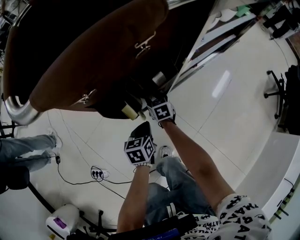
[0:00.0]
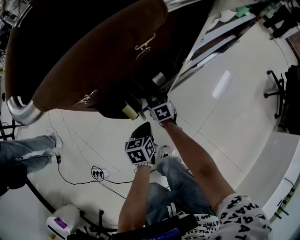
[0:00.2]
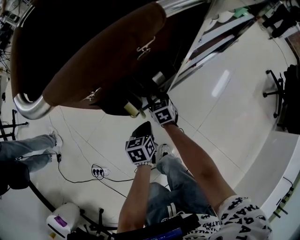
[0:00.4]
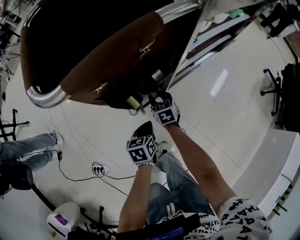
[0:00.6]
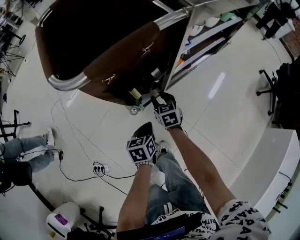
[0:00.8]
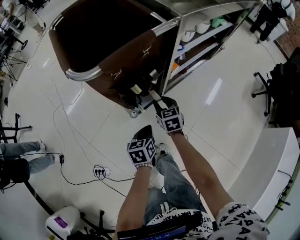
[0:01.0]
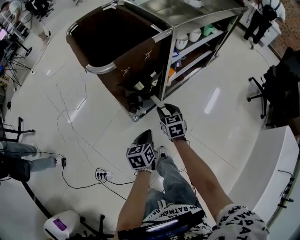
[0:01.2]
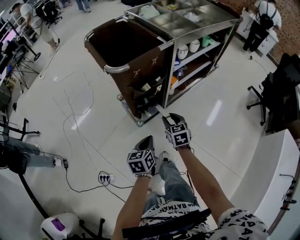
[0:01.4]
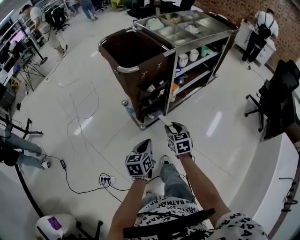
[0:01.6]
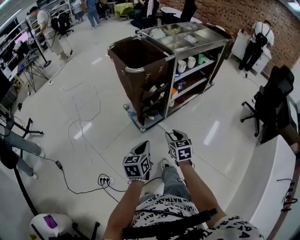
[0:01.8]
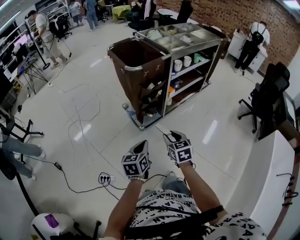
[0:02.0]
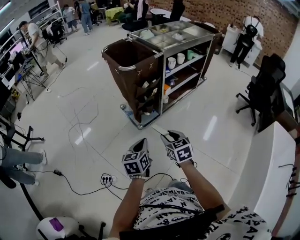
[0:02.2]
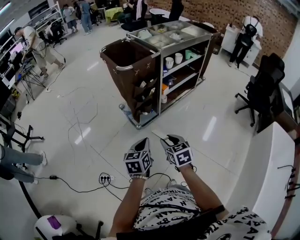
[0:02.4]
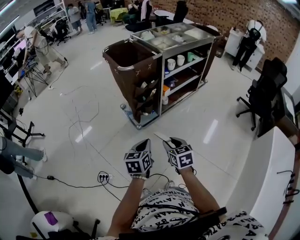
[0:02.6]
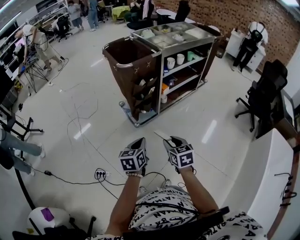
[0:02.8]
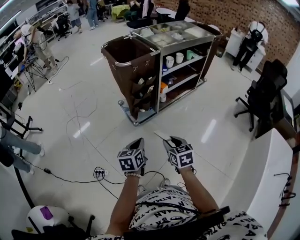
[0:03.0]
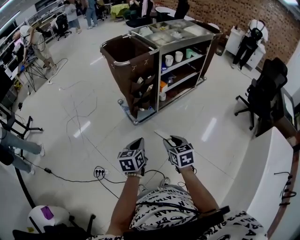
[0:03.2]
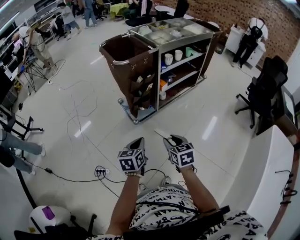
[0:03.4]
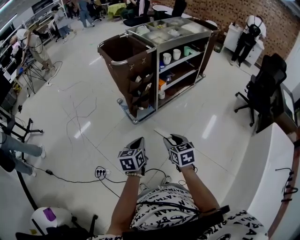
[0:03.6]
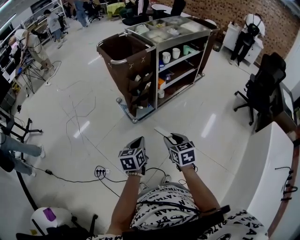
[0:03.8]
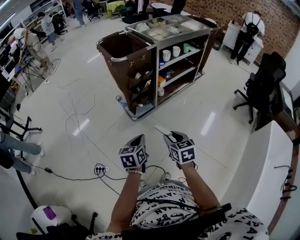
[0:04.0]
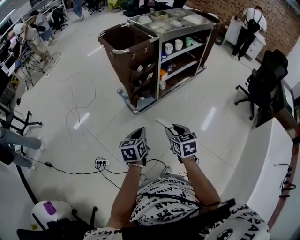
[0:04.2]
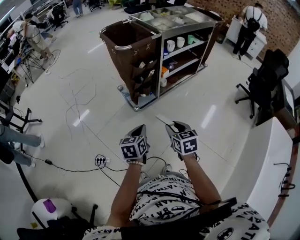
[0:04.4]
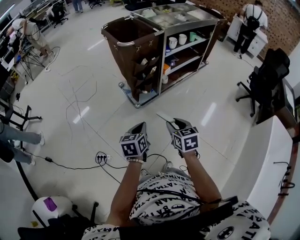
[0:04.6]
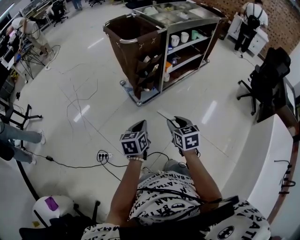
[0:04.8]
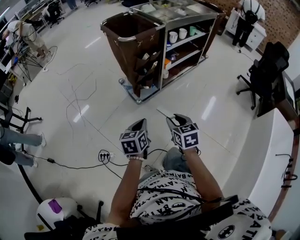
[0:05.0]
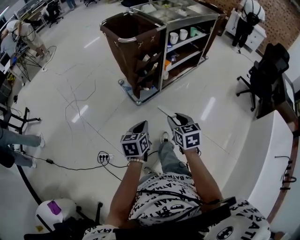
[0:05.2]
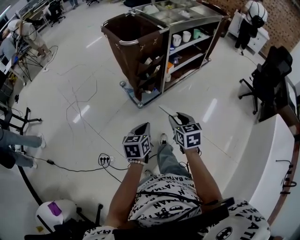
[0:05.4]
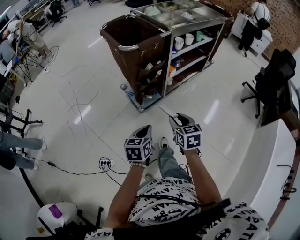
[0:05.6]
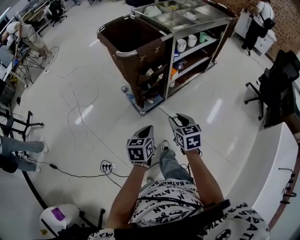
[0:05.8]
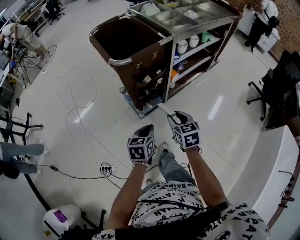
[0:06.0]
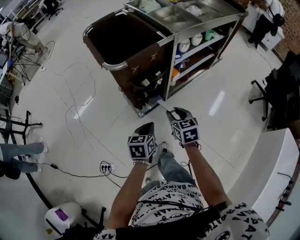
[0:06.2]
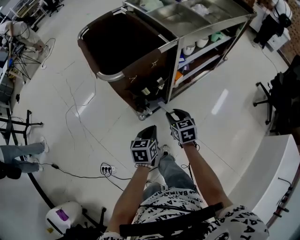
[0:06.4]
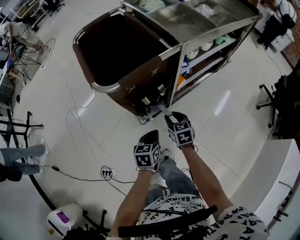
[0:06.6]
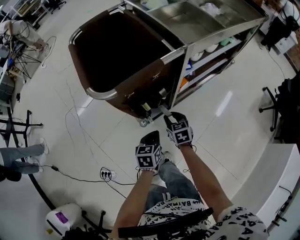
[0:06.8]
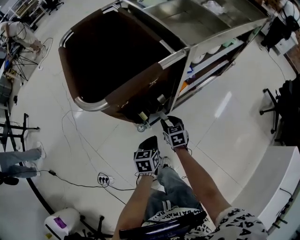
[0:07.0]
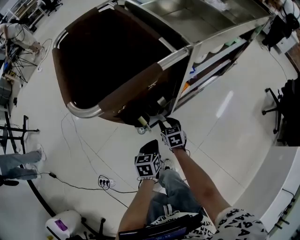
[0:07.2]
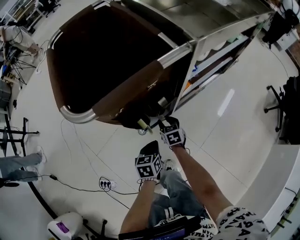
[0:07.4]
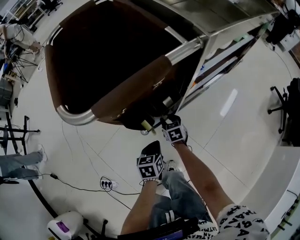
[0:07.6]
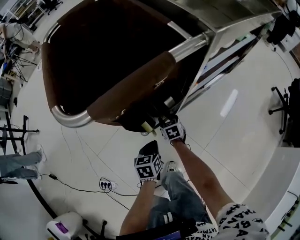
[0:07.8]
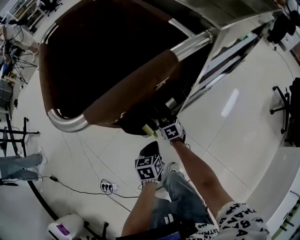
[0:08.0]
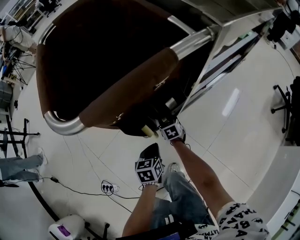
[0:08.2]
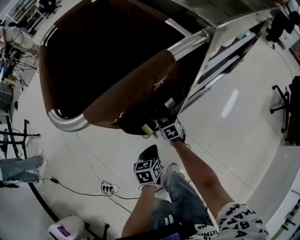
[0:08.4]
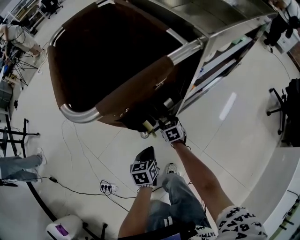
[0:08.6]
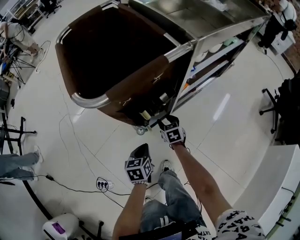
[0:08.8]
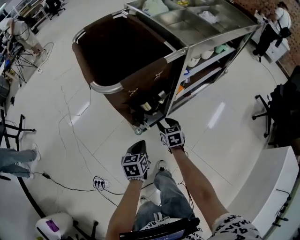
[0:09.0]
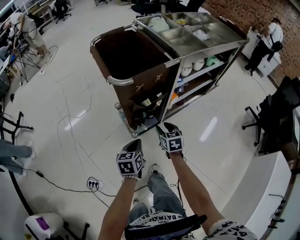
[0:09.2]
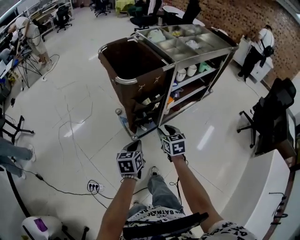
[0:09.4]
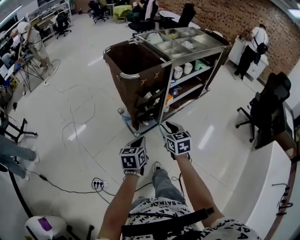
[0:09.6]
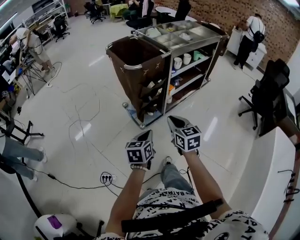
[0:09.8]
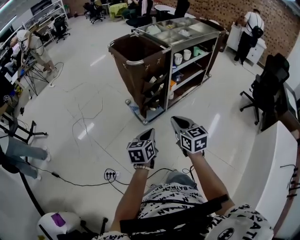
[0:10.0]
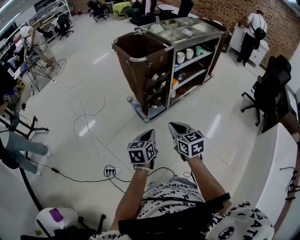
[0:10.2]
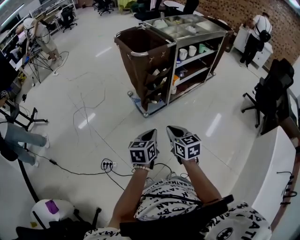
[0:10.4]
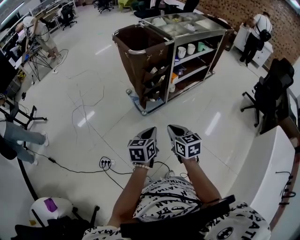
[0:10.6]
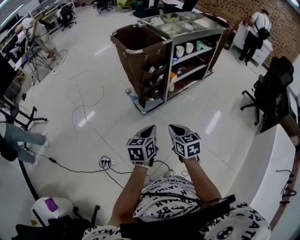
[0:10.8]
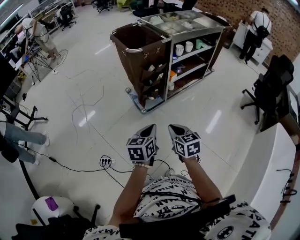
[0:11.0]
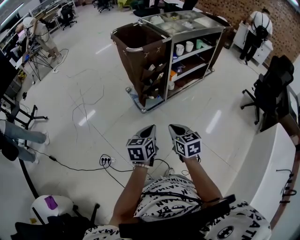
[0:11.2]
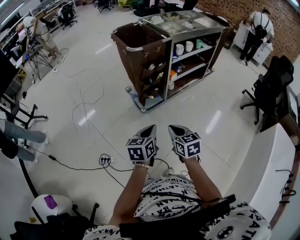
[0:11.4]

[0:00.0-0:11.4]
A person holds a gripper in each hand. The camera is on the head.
0:00.0 to 0:01.4: The two grippers go about 35 cm upward and backward.
0:01.4 to 0:02.8: The grippers both shift backward and upward by some 30 cm.
0:02.8 to 0:04.2: There are only small adjustments of the grippers.
0:04.2 to 0:05.6: The right gripper is displaced forward by approximately 10 cm, while the left gripper moves forward, some 5 cm.
0:05.6 to 0:07.2: Both grippers move forward and downward, about 40 cm.
0:07.2 to 0:08.6: The left gripper changes place by roughly 5 cm. Meanwhile the right gripper moves downward, about 10 cm.
0:08.6 to 0:10.0: Both grippers move upward and backward, some 50 cm. The left gripper changes its angle by roughly 20 degrees. Meanwhile the right gripper changes its angle by about 30 degrees, and closes its fingers.
0:10.0 to 0:11.4: The right gripper heads backward and downward, covering roughly 10 cm; the left gripper moves backward, about 5 cm.

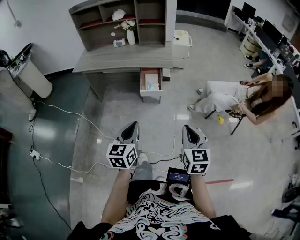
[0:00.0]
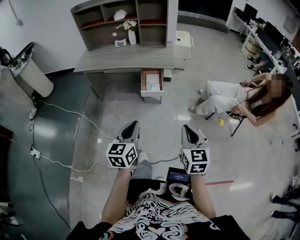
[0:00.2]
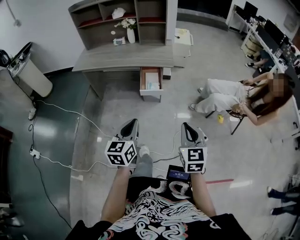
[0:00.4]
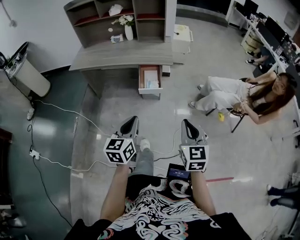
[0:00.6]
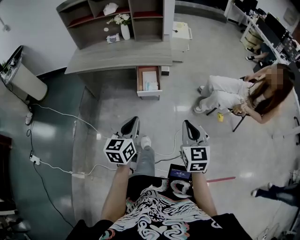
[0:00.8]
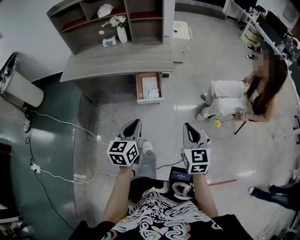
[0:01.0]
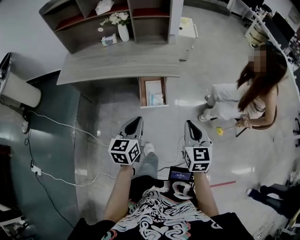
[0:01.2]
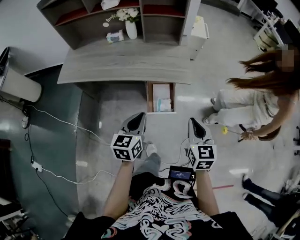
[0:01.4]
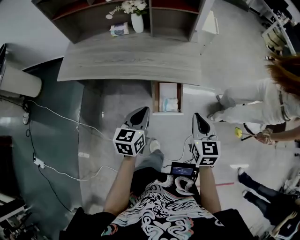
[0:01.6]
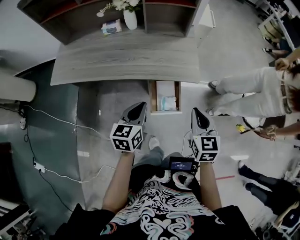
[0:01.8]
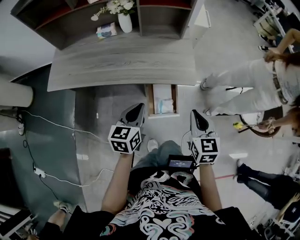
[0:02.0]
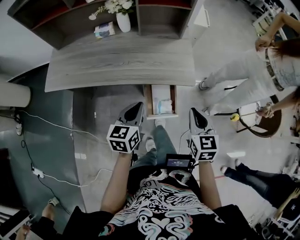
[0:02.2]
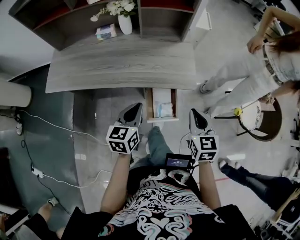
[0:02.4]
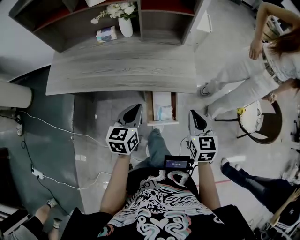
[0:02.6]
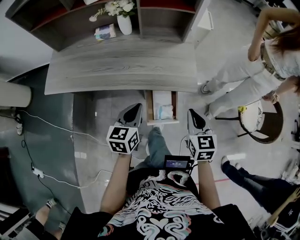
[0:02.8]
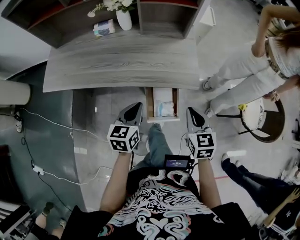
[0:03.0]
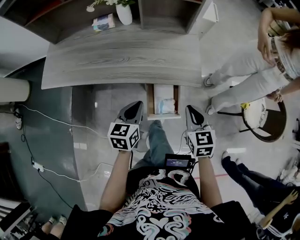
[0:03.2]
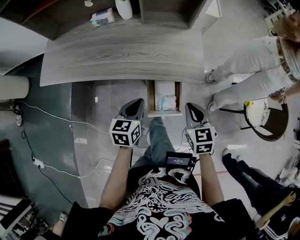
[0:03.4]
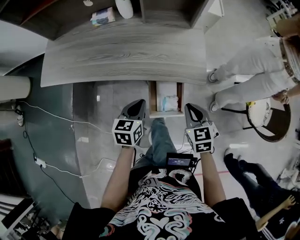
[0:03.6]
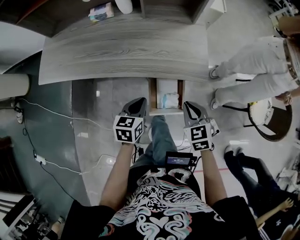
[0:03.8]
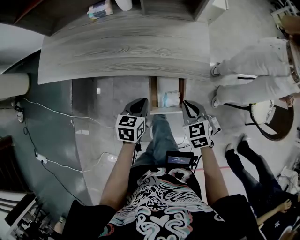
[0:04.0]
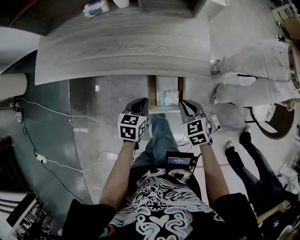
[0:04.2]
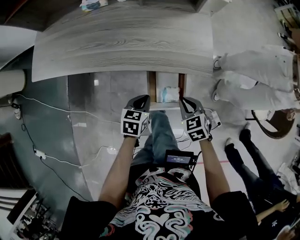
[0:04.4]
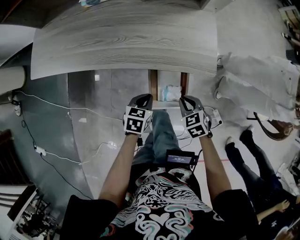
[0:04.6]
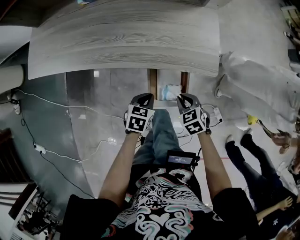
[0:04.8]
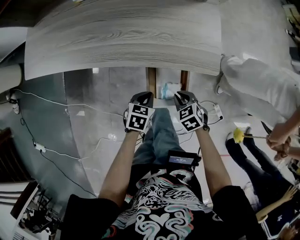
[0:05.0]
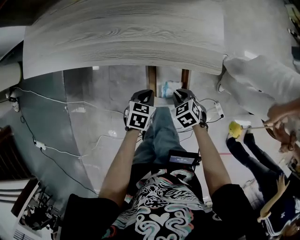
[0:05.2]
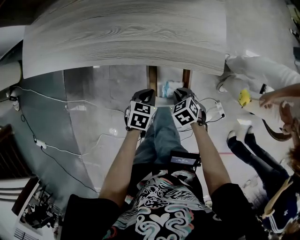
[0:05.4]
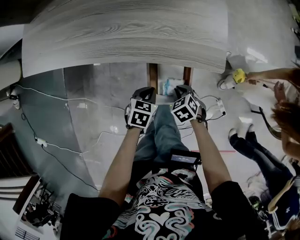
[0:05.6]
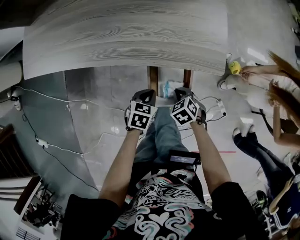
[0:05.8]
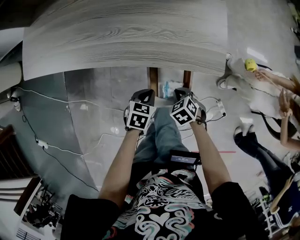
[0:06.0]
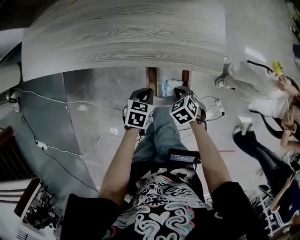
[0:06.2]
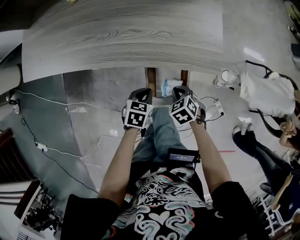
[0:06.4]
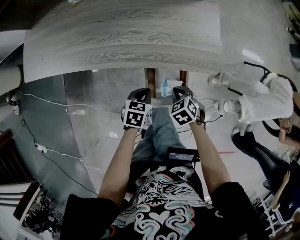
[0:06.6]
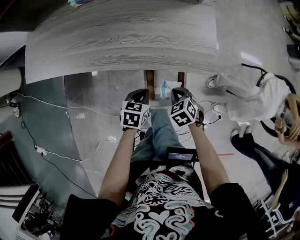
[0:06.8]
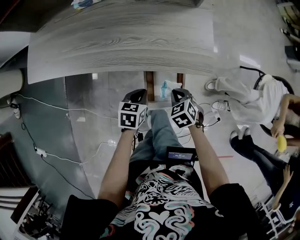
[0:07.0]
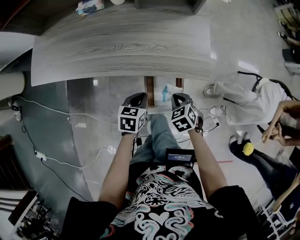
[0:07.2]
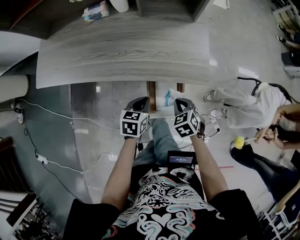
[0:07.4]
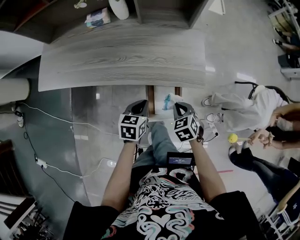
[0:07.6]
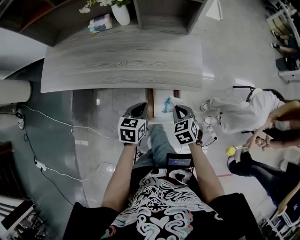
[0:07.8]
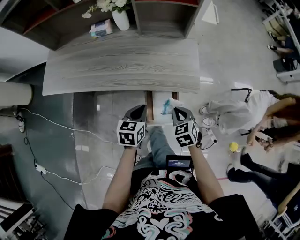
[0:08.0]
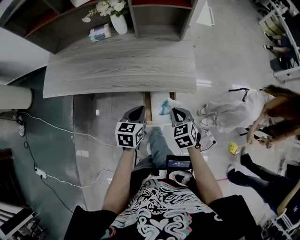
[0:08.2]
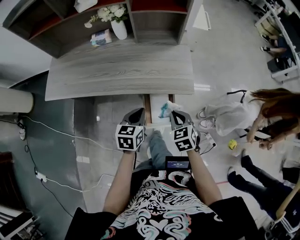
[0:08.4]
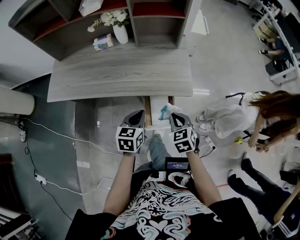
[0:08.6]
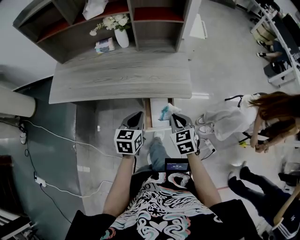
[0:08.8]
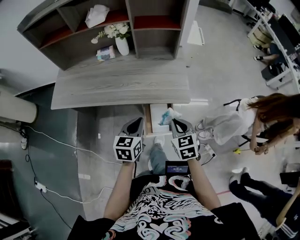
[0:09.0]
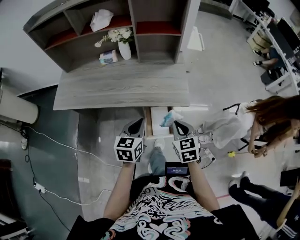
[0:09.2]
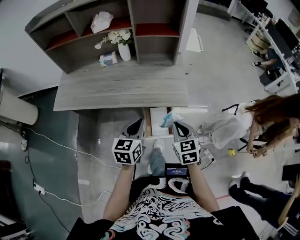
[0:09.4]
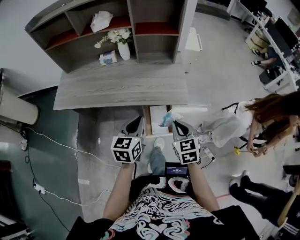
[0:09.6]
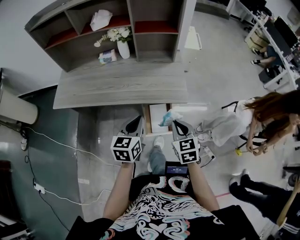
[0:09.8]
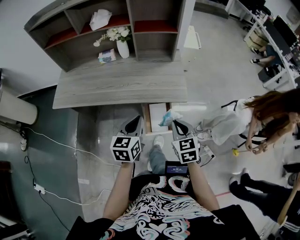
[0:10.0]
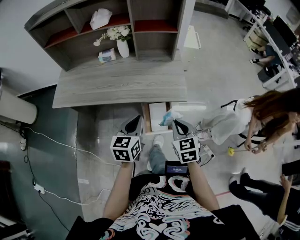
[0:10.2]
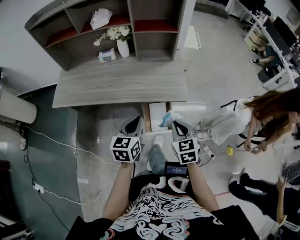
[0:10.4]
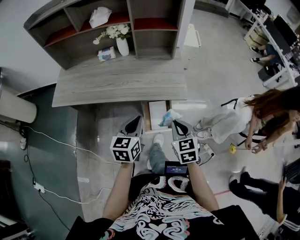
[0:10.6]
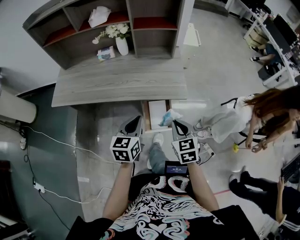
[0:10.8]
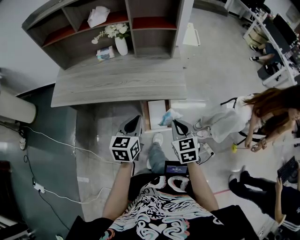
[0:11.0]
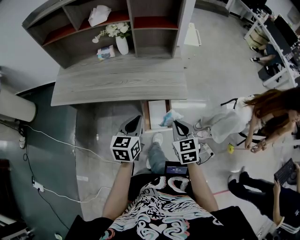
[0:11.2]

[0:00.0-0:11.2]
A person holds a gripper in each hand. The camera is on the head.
0:00.0 to 0:01.6: The two grippers travel together, forward, roughly 40 cm.
0:01.6 to 0:03.2: The grippers both shift forward and downward by about 10 cm.
0:03.2 to 0:04.8: Both grippers move downward, some 20 cm. The right gripper changes its angle by approximately 30 degrees. Meanwhile the left gripper rotates some 30 degrees.
0:06.4 to 0:08.0: Both grippers travel together upward, some 15 cm. The left gripper rotates about 20 degrees. The right gripper rotates roughly 20 degrees.
0:08.0 to 0:09.6: The grippers both shift upward by some 15 cm. The right gripper changes its angle by about 20 degrees.
0:09.6 to 0:11.2: The grippers make only small movements.

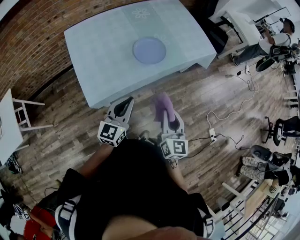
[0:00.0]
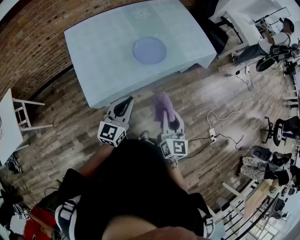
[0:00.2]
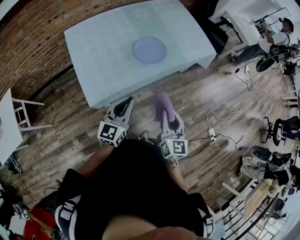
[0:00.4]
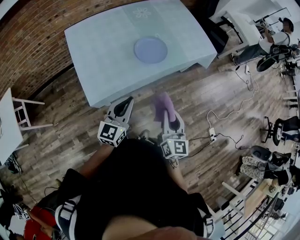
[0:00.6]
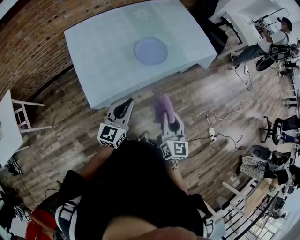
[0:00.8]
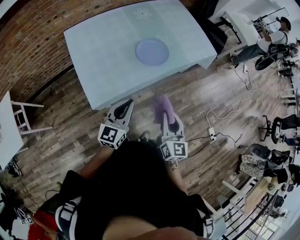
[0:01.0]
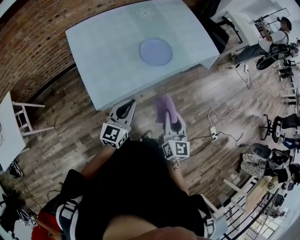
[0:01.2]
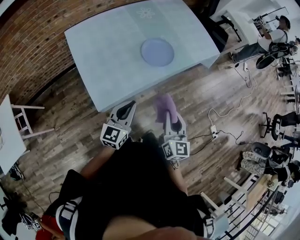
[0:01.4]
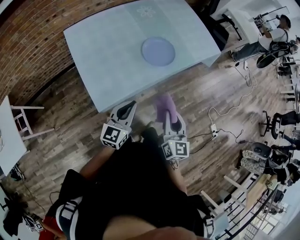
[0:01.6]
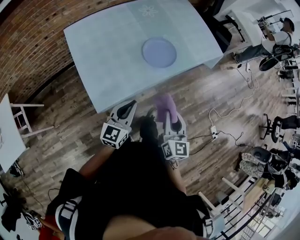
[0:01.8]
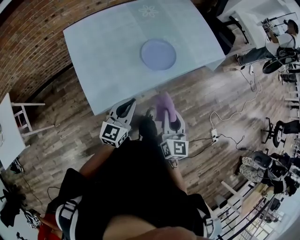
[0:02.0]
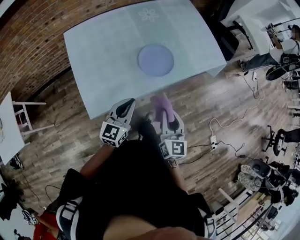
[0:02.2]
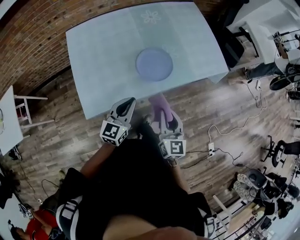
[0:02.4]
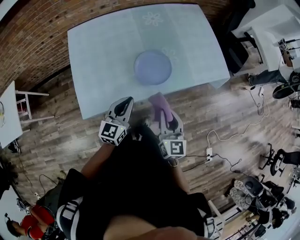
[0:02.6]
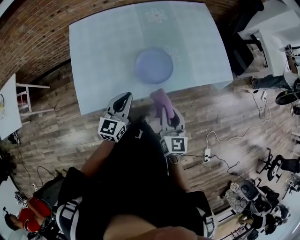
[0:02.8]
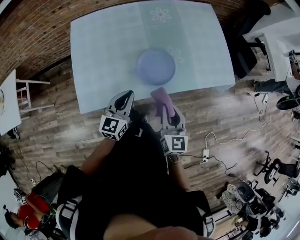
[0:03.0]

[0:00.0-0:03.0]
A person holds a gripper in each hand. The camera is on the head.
0:00.0 to 0:01.6: Both grippers travel together to the left, some 10 cm.
0:01.6 to 0:03.0: The grippers both shift forward and to the right by some 25 cm. The right gripper turns by roughly 20 degrees, while the left gripper swivels some 20 degrees.
